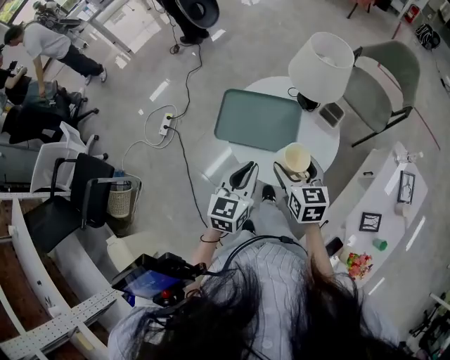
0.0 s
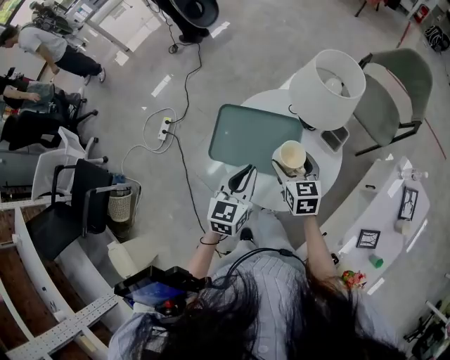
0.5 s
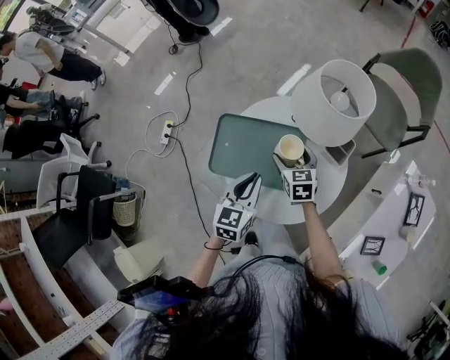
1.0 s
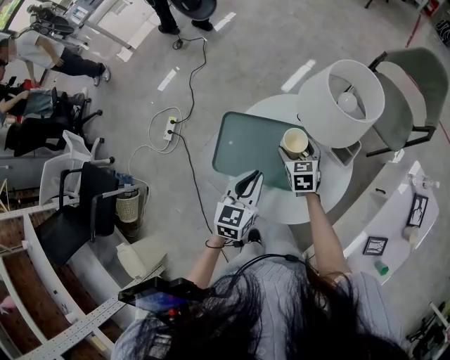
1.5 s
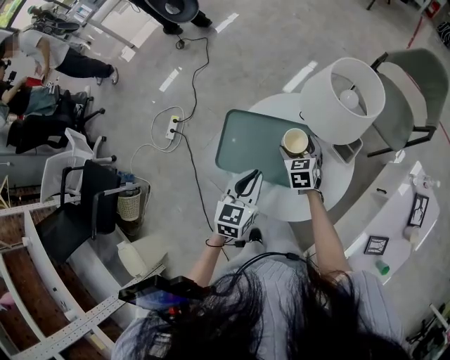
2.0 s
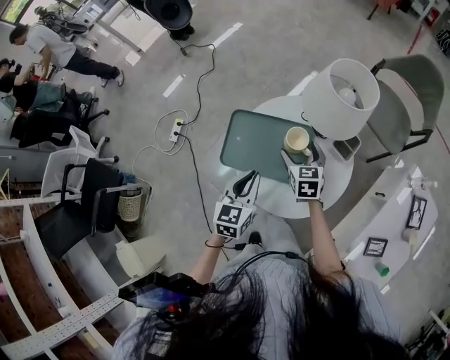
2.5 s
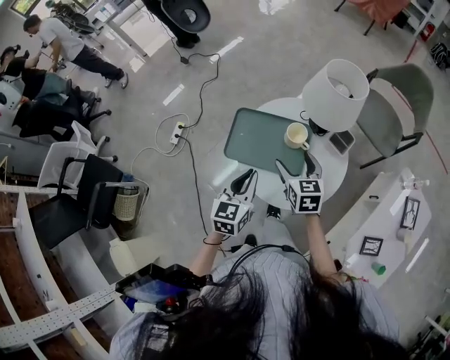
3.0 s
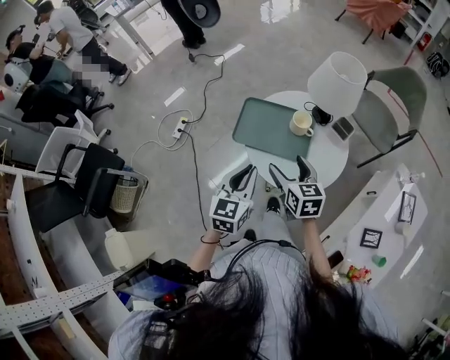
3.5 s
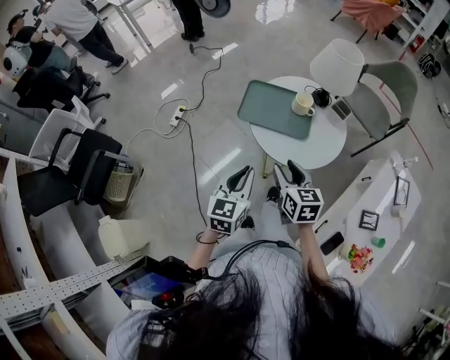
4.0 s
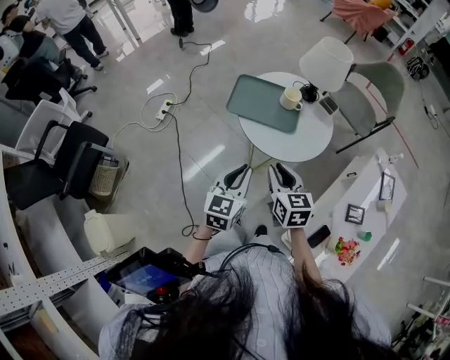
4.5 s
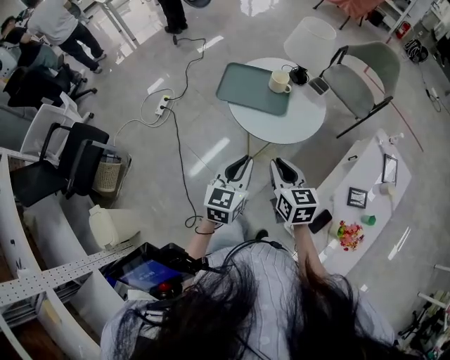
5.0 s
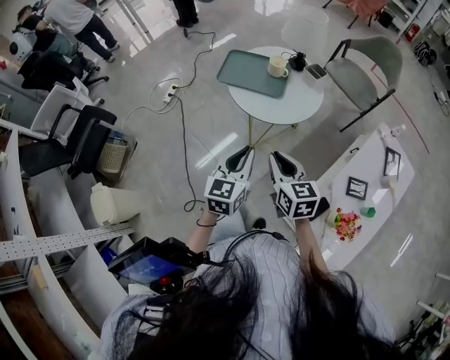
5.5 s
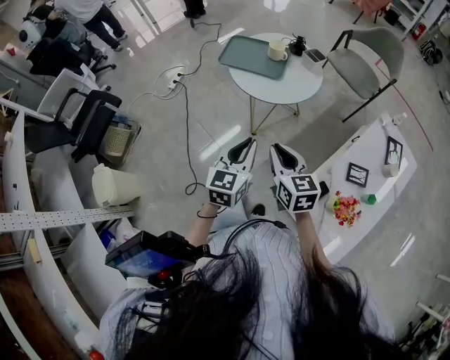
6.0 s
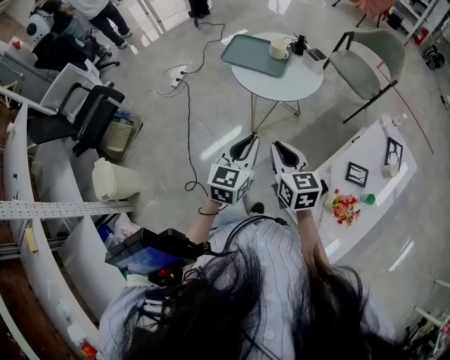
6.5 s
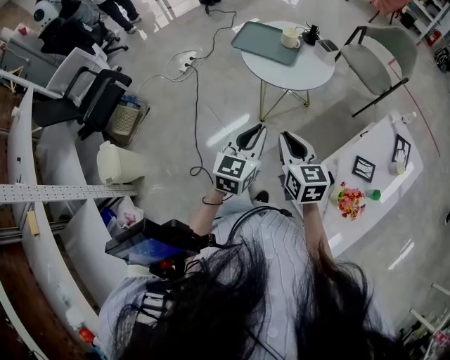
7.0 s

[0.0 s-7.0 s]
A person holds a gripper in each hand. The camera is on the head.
0.0 to 2.0 s: The right gripper goes some 25 cm forward and downward, and swivels approximately 20 degrees, while the left gripper shifts about 15 cm forward and downward.
2.0 to 3.5 s: The left gripper shifts about 15 cm backward and upward; the right gripper moves backward and upward, roughly 25 cm, and swivels approximately 20 degrees.
3.5 to 5.0 s: Both grippers travel together backward, approximately 20 cm. The right gripper closes.
5.0 to 7.0 s: The right gripper goes some 20 cm backward. The left gripper is displaced backward and to the right by approximately 20 cm.

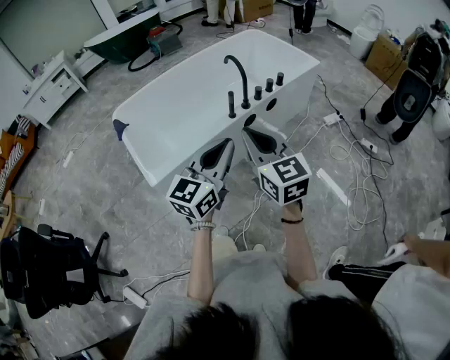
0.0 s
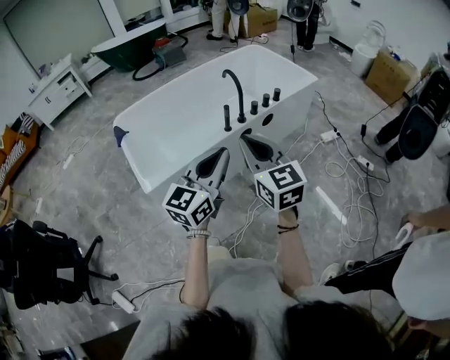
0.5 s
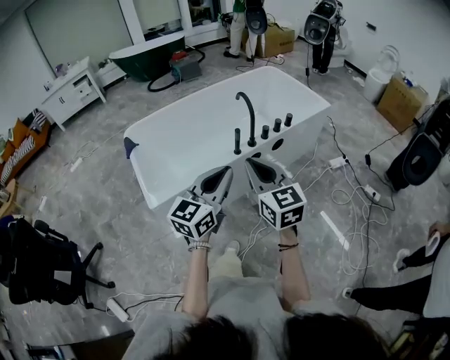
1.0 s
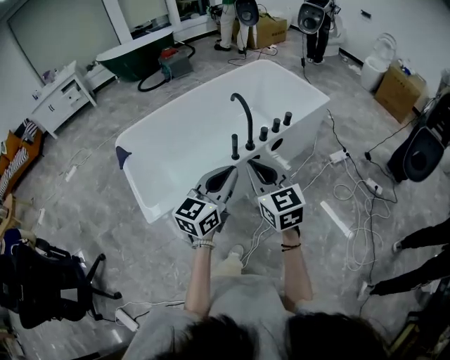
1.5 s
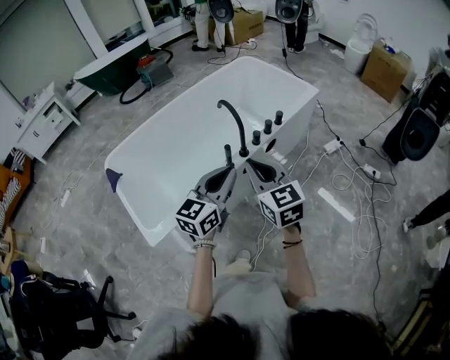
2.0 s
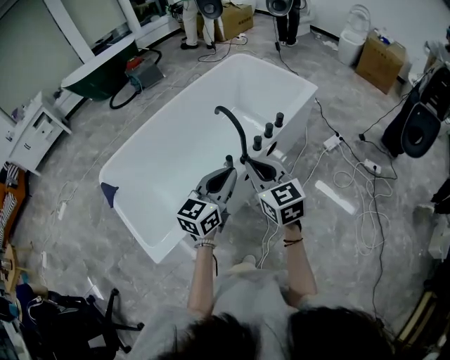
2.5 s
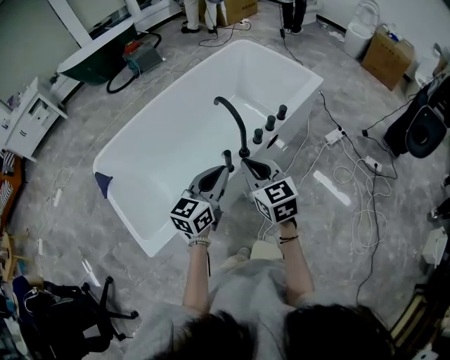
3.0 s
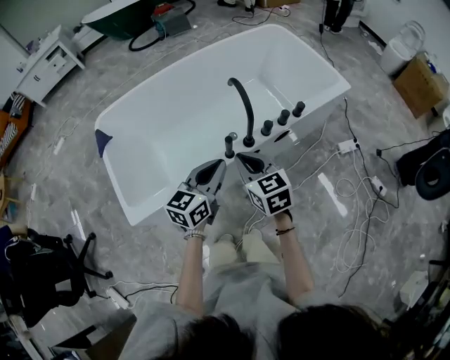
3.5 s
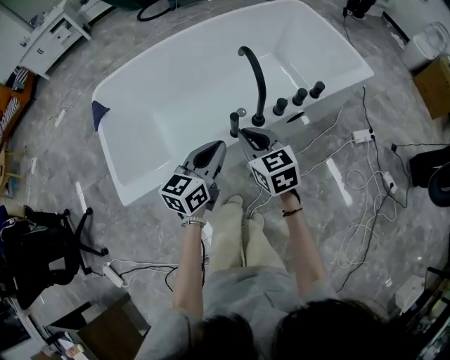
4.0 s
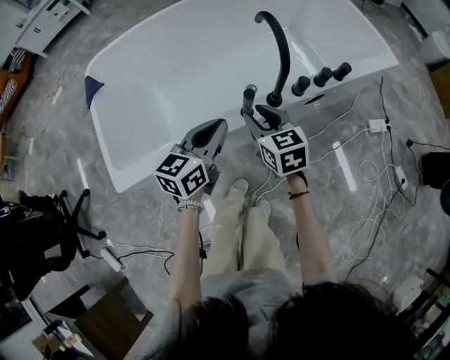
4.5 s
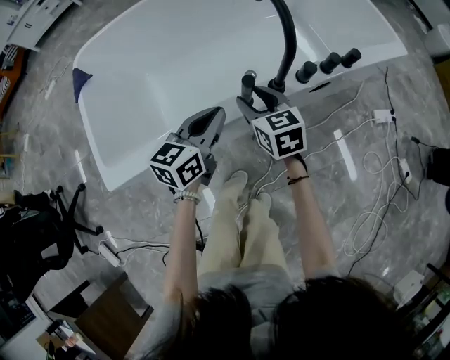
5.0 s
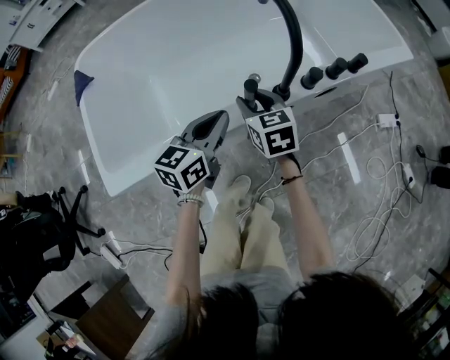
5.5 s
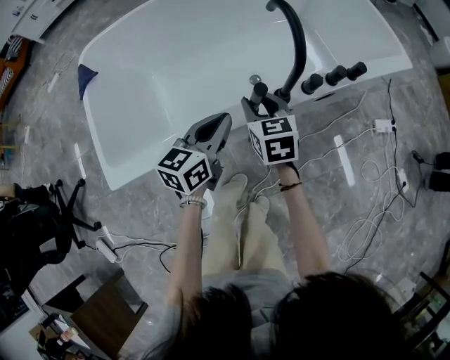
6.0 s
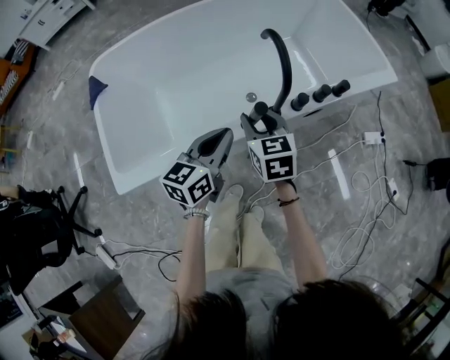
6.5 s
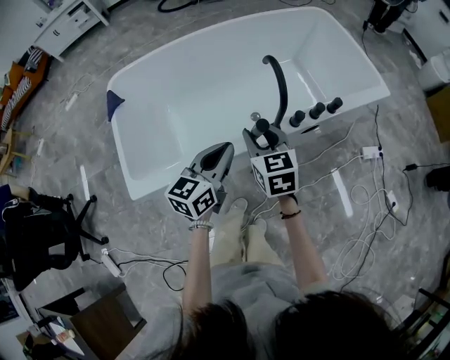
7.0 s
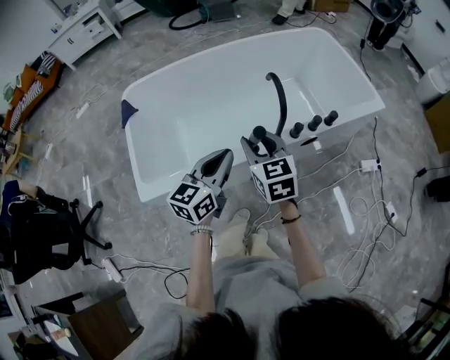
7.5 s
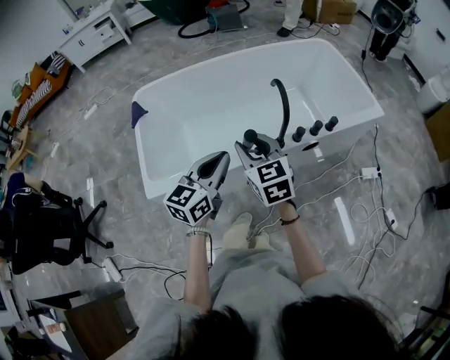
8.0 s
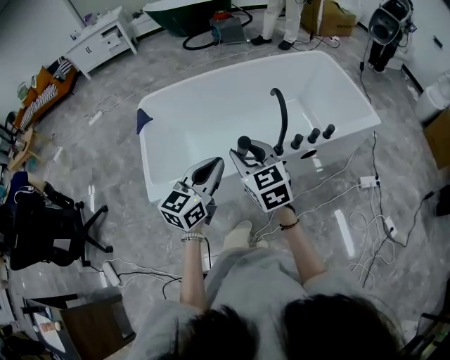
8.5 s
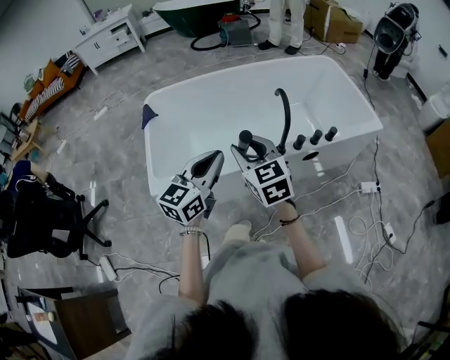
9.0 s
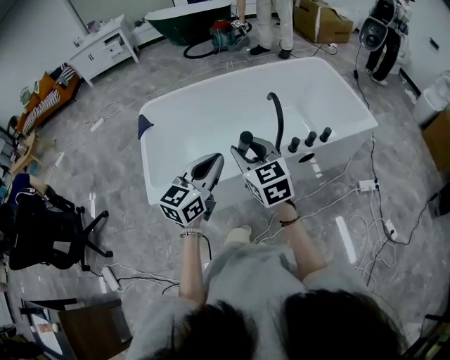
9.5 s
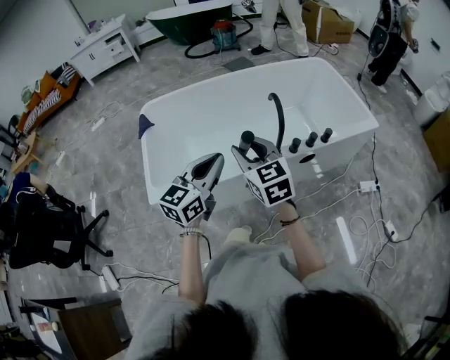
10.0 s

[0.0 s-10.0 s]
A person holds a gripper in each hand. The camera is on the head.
0.0 to 2.0 s: The grippers both shift forward by some 20 cm.
2.0 to 4.0 s: Both grippers move downward and forward, approximately 25 cm. The left gripper changes its angle by roughly 20 degrees. Meanwhile the right gripper turns by some 30 degrees.
4.0 to 6.0 s: Both grippers travel together downward and forward, about 15 cm. The right gripper opens.
6.0 to 8.0 s: Both grippers travel together upward and backward, roughly 30 cm.
8.0 to 10.0 s: The left gripper shifts by about 5 cm. The right gripper moves approximately 5 cm.

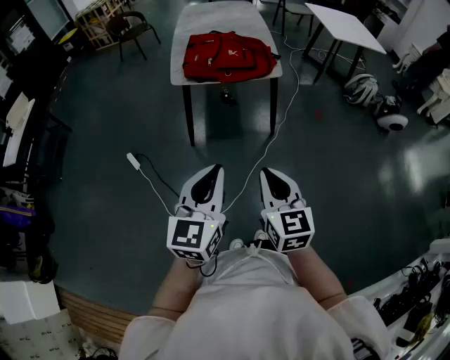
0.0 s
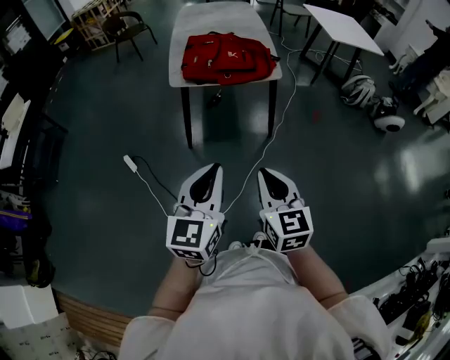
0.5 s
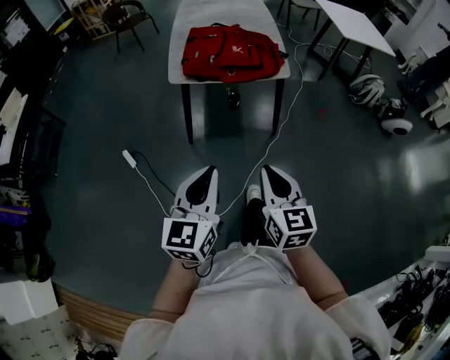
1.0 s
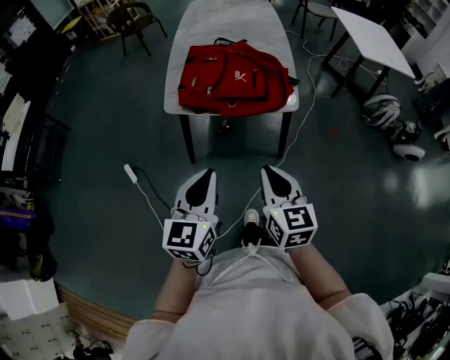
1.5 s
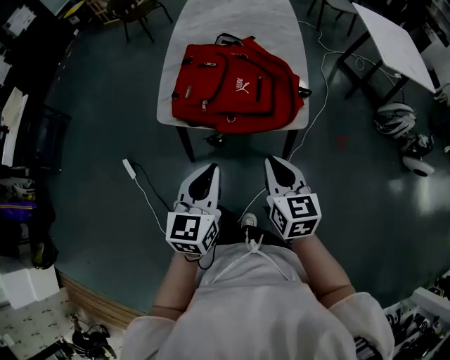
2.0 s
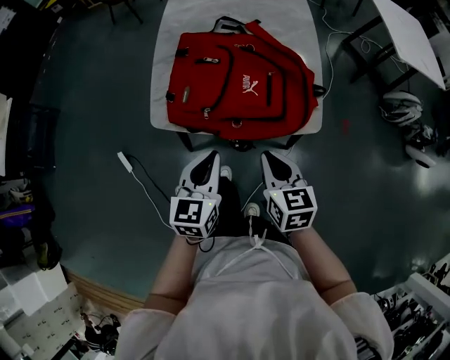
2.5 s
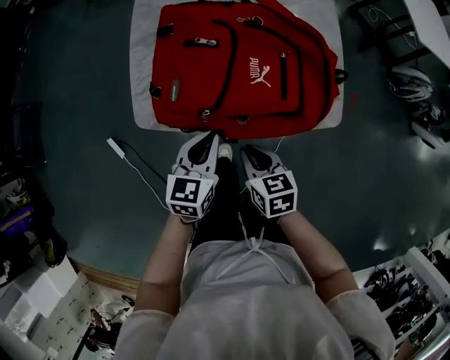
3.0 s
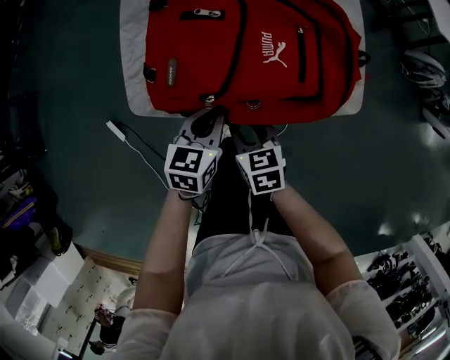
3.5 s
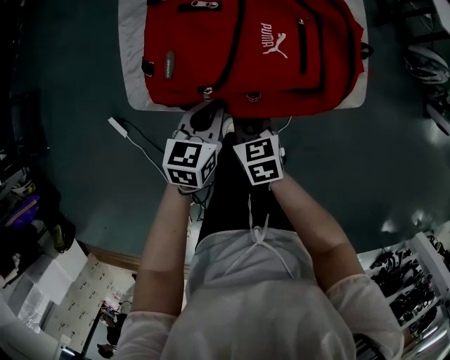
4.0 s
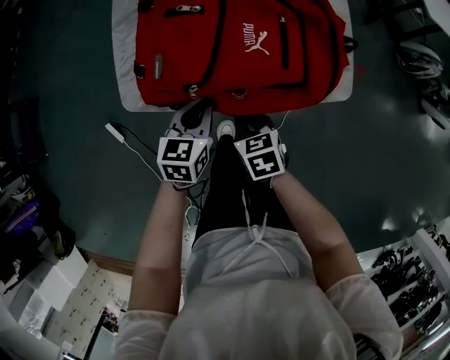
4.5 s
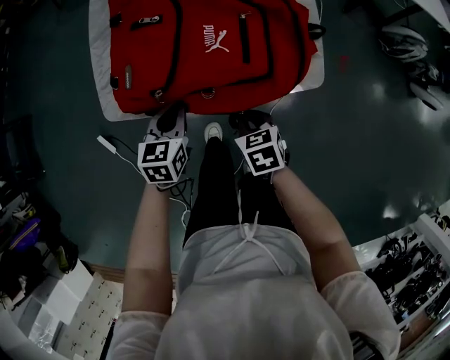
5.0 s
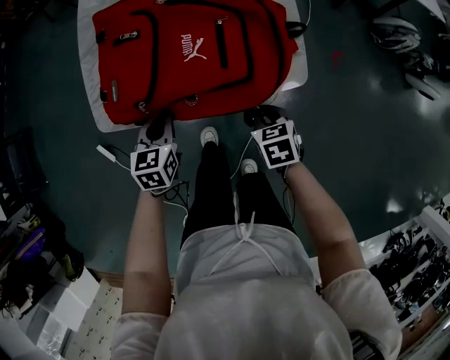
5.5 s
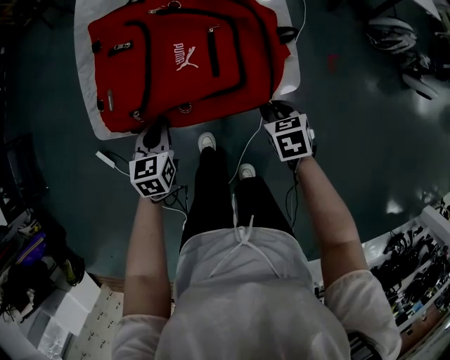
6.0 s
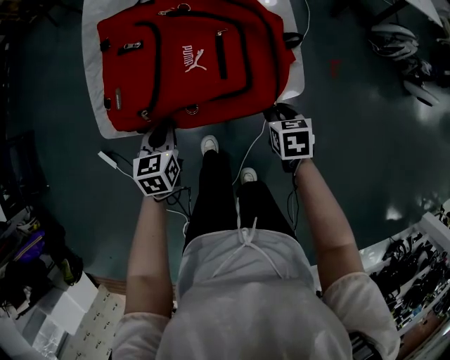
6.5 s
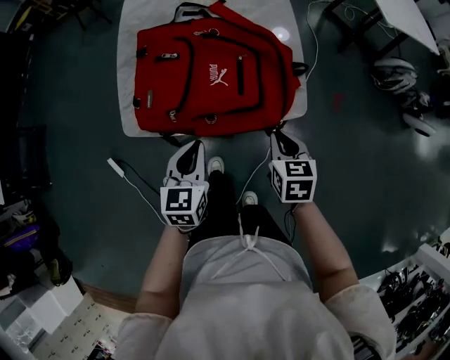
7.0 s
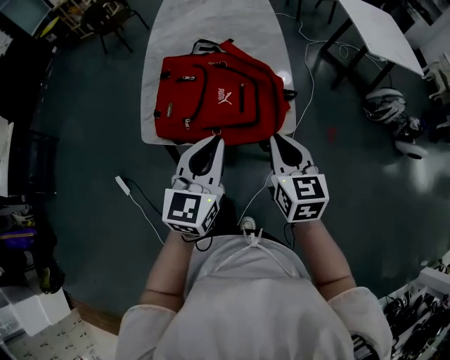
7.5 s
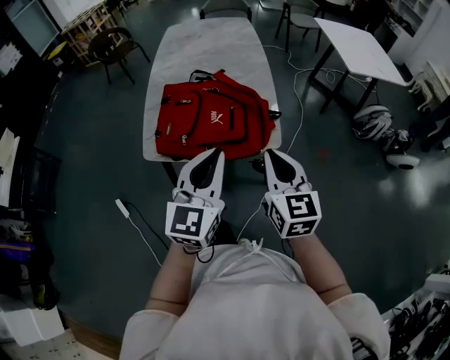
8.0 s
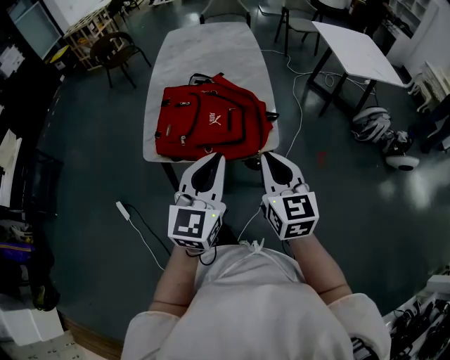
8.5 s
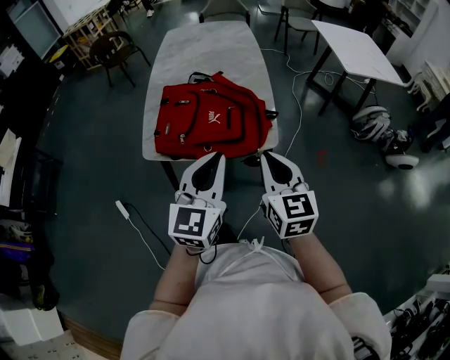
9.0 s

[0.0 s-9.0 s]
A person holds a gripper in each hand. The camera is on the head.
0.0 to 2.0 s: Both grippers move forward, roughly 40 cm.
2.0 to 4.5 s: The right gripper heads downward, to the left and forward, covering some 30 cm, swivels roughly 30 degrees, and opens and closes again, while the left gripper heads downward and forward, covering about 30 cm, and swivels roughly 20 degrees.
4.5 to 7.0 s: The left gripper travels upward and backward by roughly 10 cm. The right gripper is displaced to the right and upward by some 20 cm, and rotates roughly 20 degrees.
7.0 to 9.0 s: The right gripper travels upward by about 25 cm, and angles its fingers upward, by about 30 degrees. The left gripper is displaced upward and to the right by roughly 25 cm, and changes its angle by some 30 degrees.
